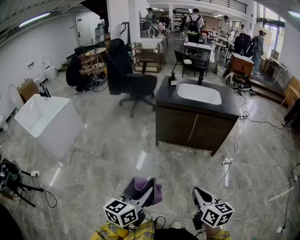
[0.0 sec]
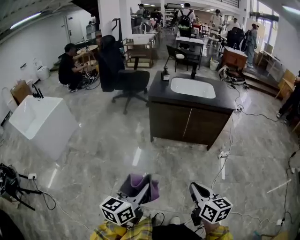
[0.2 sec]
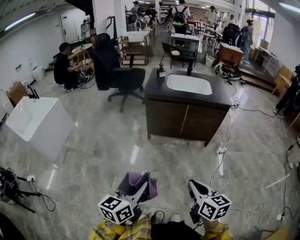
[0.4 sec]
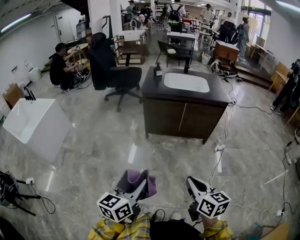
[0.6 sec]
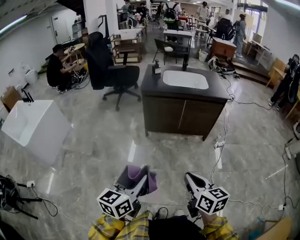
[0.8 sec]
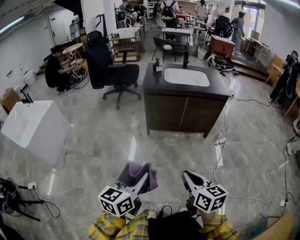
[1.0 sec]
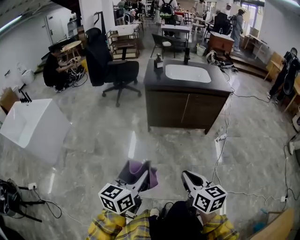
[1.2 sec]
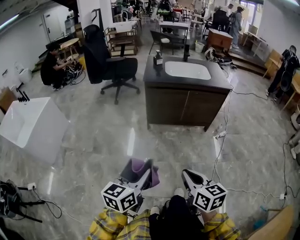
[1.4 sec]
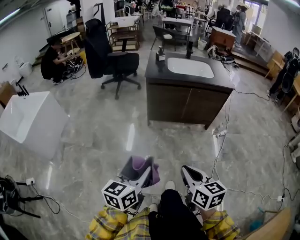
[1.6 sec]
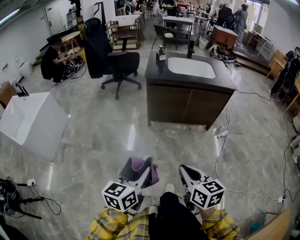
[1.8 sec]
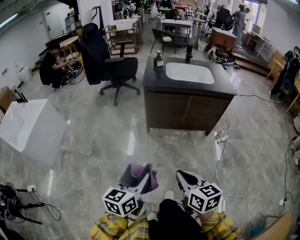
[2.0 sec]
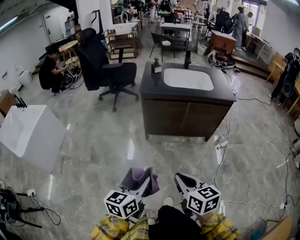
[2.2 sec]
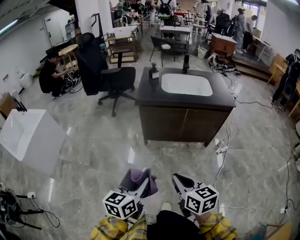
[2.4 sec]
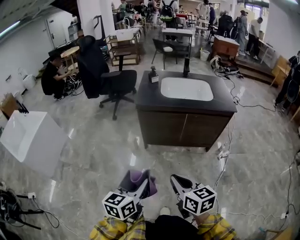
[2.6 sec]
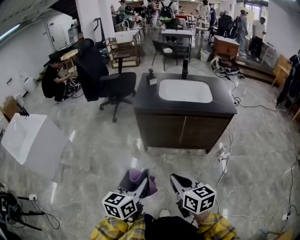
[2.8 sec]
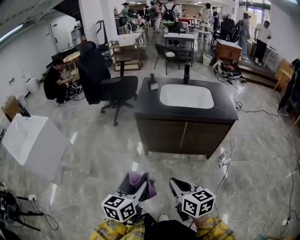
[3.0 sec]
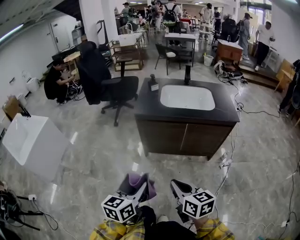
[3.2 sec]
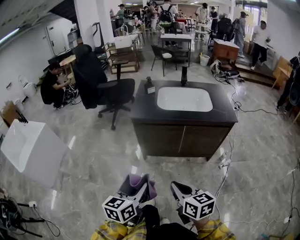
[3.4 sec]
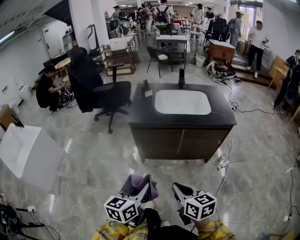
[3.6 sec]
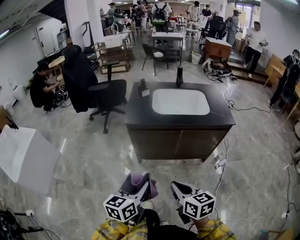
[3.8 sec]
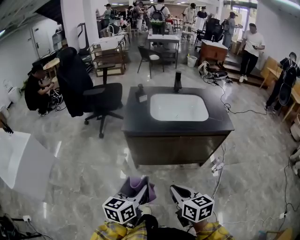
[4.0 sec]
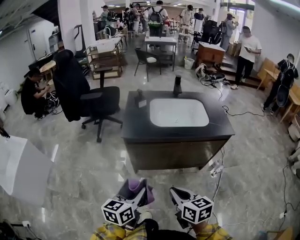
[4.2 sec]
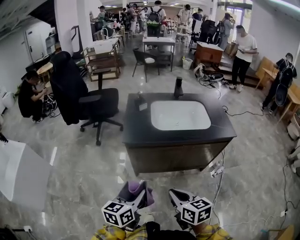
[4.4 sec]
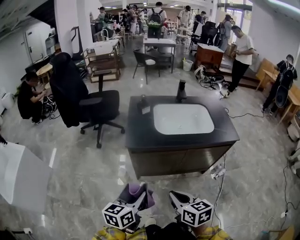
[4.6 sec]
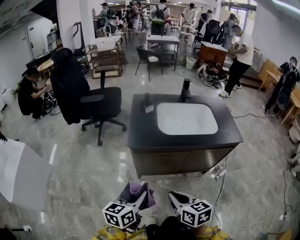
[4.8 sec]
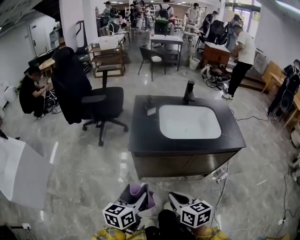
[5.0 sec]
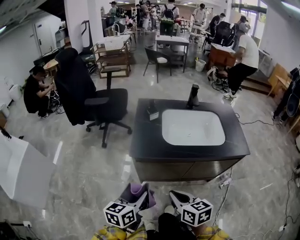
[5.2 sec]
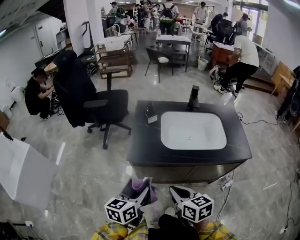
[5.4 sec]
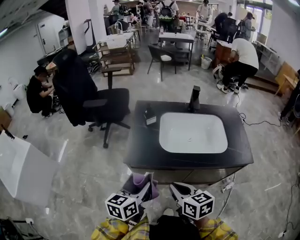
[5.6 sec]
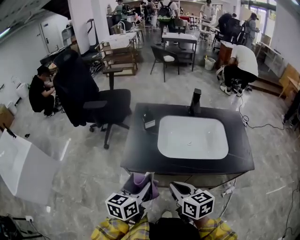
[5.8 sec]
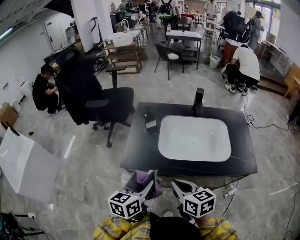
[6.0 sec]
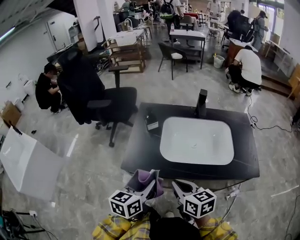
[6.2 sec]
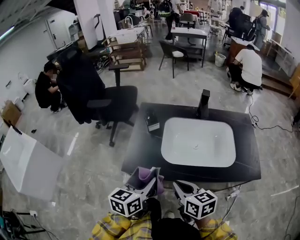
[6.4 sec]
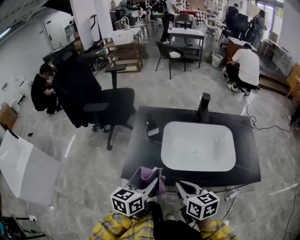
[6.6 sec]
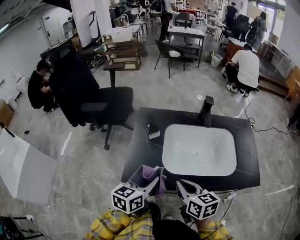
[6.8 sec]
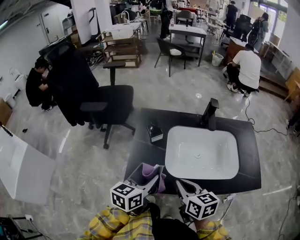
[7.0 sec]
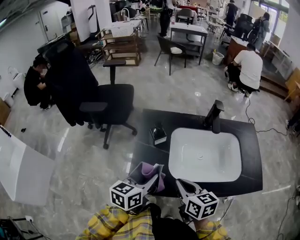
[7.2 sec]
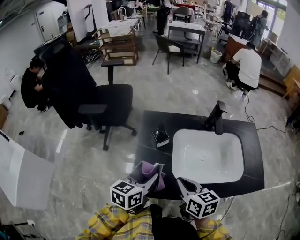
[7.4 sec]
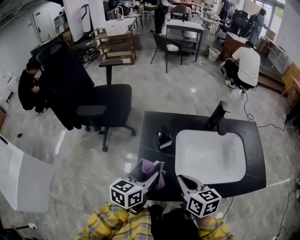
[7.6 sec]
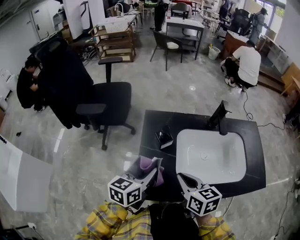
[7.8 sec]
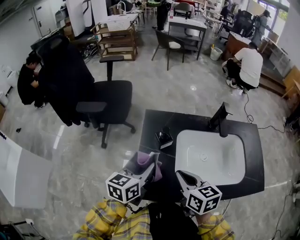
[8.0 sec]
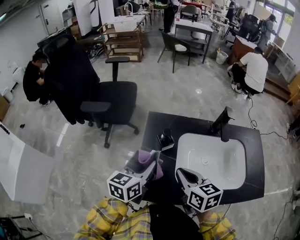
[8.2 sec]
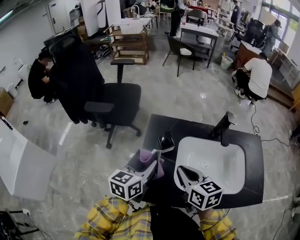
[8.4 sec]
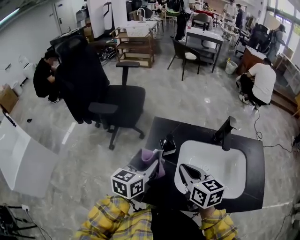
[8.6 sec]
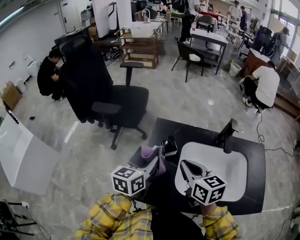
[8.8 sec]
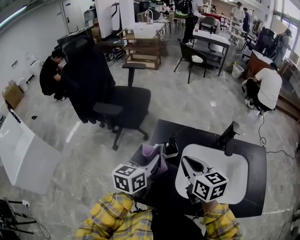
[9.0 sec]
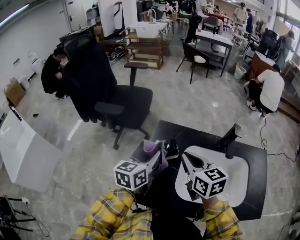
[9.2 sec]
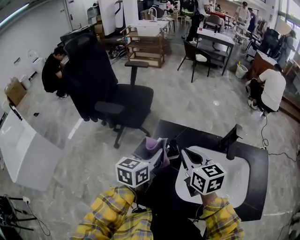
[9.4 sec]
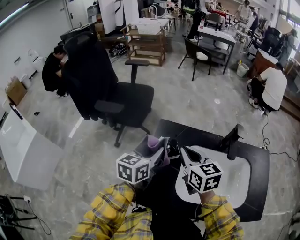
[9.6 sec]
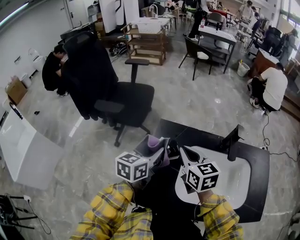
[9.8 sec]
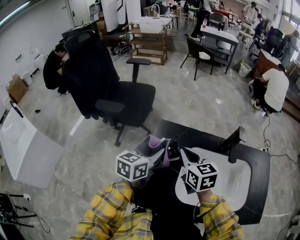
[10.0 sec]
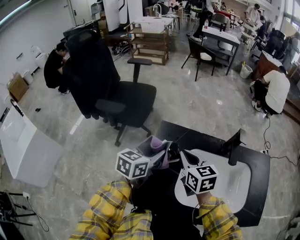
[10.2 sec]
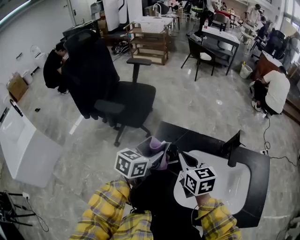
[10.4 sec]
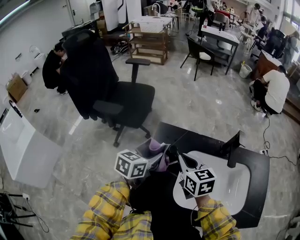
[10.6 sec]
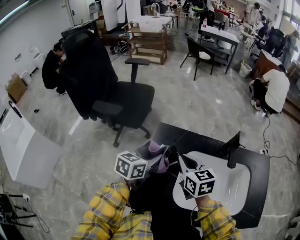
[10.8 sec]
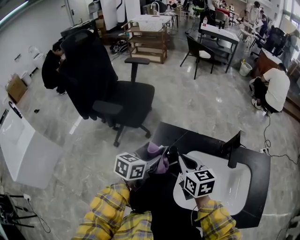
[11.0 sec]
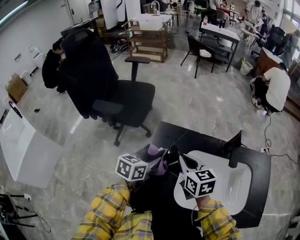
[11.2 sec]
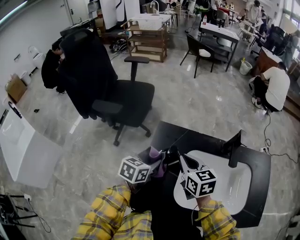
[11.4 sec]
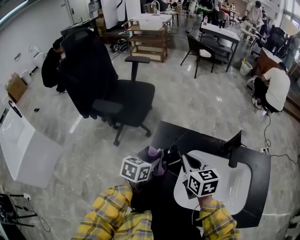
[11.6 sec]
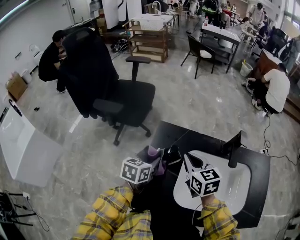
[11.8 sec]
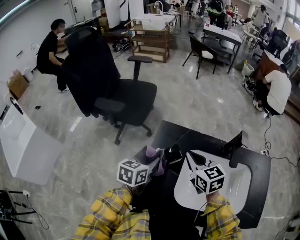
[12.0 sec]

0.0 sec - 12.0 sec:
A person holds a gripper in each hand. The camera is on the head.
0.0 sec - 1.6 sec: The right gripper is displaced to the left by about 15 cm. The left gripper heads to the left and forward, covering approximately 10 cm.
1.6 sec - 3.0 sec: The left gripper is displaced forward and to the right by roughly 25 cm. Meanwhile the right gripper travels forward by approximately 25 cm.
3.0 sec - 4.4 sec: Both grippers travel together forward, some 20 cm.
4.4 sec - 6.0 sec: The grippers both shift forward by about 25 cm.
6.0 sec - 7.6 sec: The grippers both shift forward and to the left by some 25 cm.
7.6 sec - 9.0 sec: The left gripper goes about 10 cm forward; the right gripper travels forward and upward by some 15 cm.
9.0 sec - 10.4 sec: The right gripper goes about 10 cm forward and downward. Meanwhile the left gripper is displaced forward by about 5 cm.
10.4 sec - 12.0 sec: The left gripper moves approximately 5 cm.

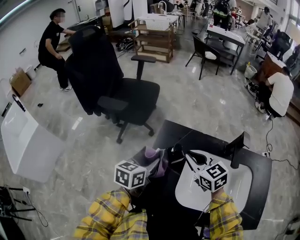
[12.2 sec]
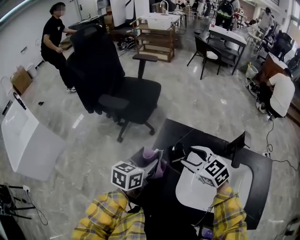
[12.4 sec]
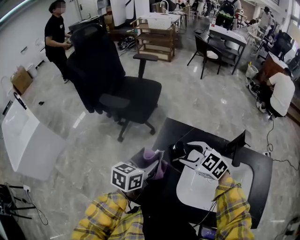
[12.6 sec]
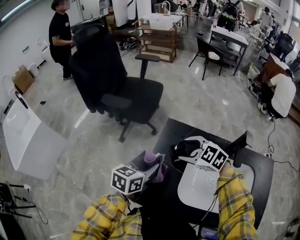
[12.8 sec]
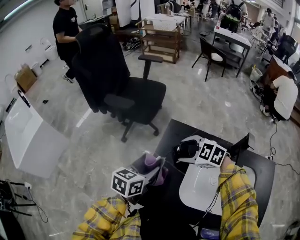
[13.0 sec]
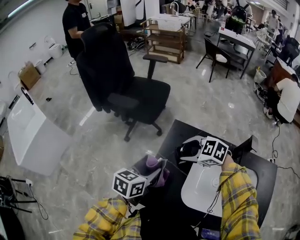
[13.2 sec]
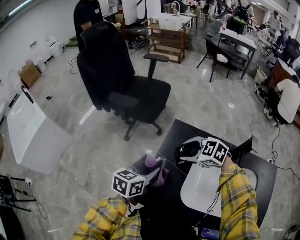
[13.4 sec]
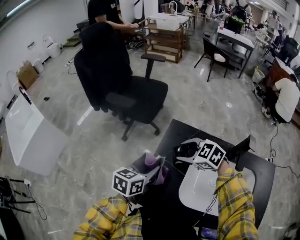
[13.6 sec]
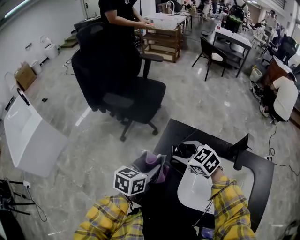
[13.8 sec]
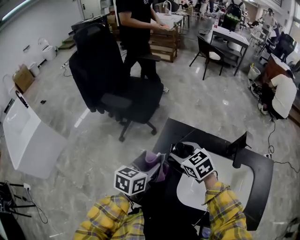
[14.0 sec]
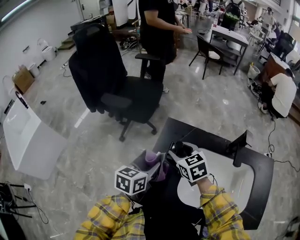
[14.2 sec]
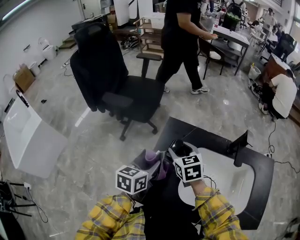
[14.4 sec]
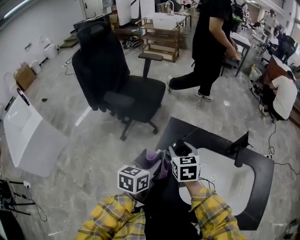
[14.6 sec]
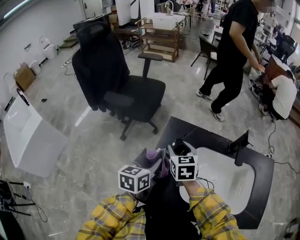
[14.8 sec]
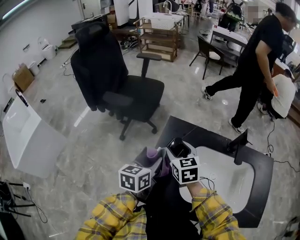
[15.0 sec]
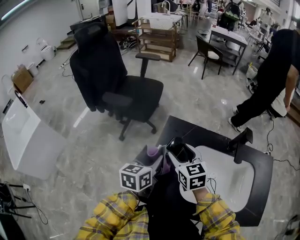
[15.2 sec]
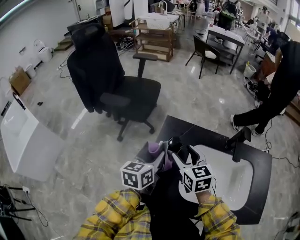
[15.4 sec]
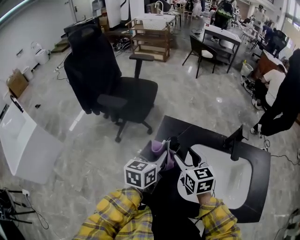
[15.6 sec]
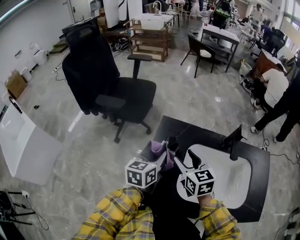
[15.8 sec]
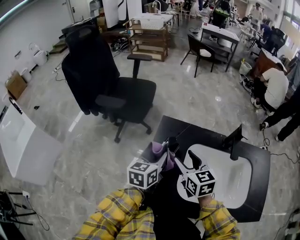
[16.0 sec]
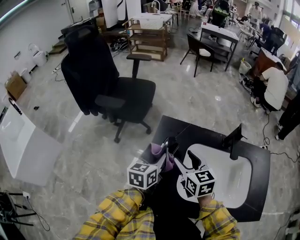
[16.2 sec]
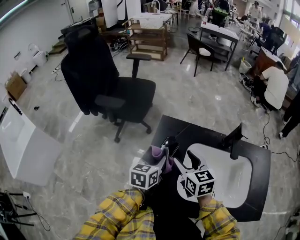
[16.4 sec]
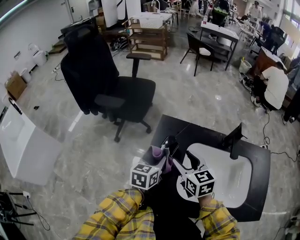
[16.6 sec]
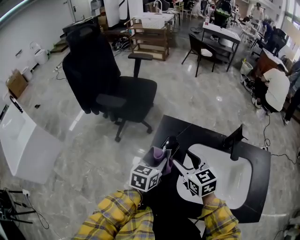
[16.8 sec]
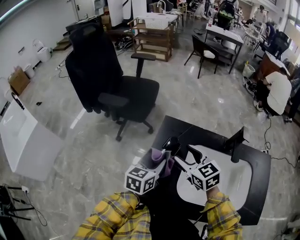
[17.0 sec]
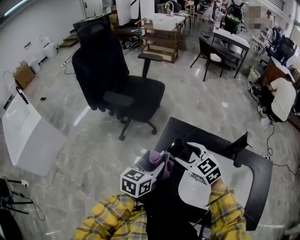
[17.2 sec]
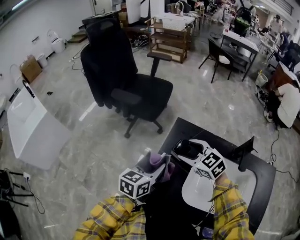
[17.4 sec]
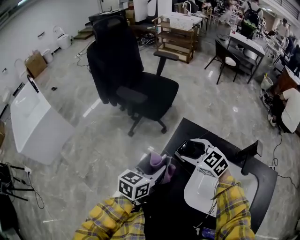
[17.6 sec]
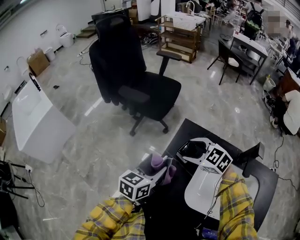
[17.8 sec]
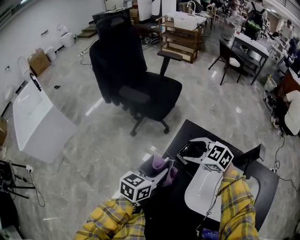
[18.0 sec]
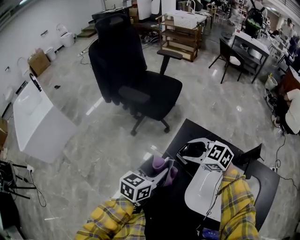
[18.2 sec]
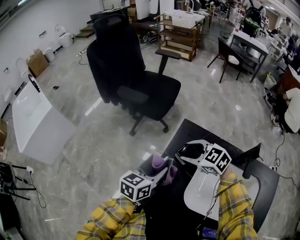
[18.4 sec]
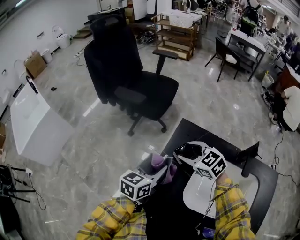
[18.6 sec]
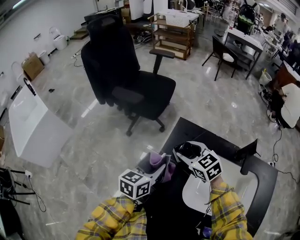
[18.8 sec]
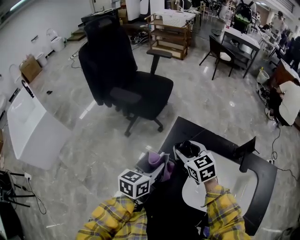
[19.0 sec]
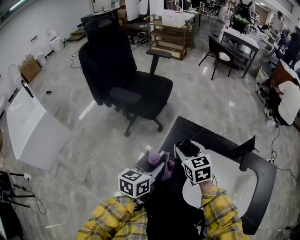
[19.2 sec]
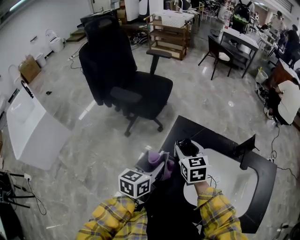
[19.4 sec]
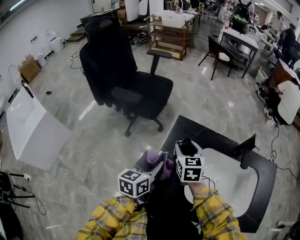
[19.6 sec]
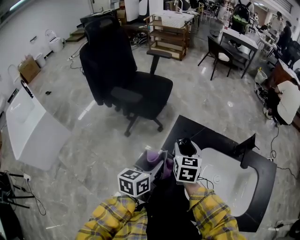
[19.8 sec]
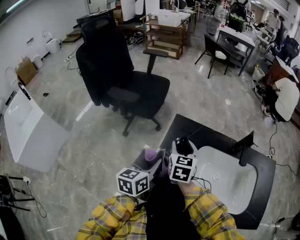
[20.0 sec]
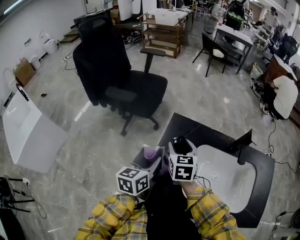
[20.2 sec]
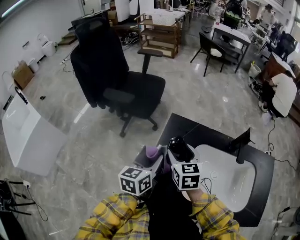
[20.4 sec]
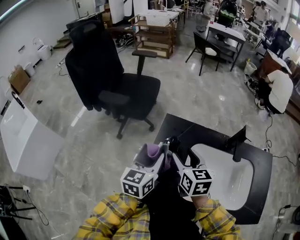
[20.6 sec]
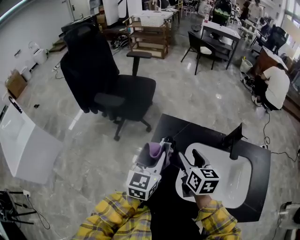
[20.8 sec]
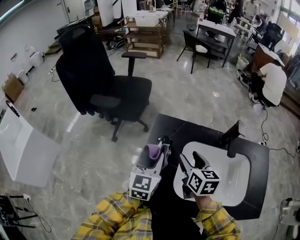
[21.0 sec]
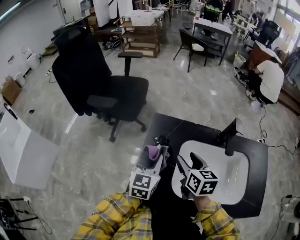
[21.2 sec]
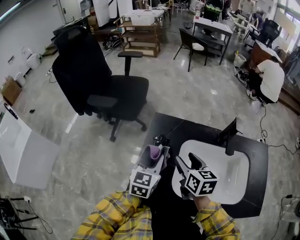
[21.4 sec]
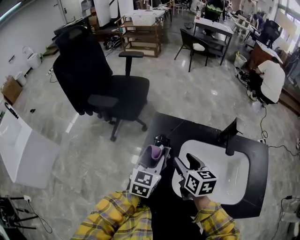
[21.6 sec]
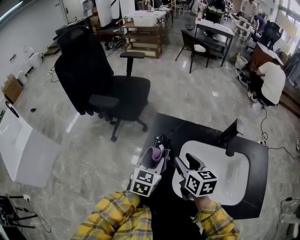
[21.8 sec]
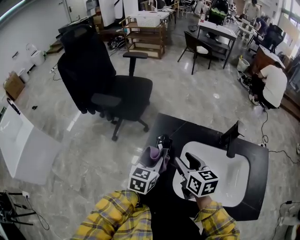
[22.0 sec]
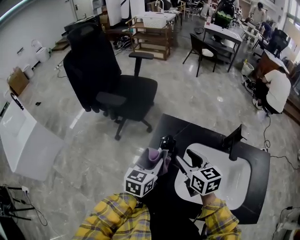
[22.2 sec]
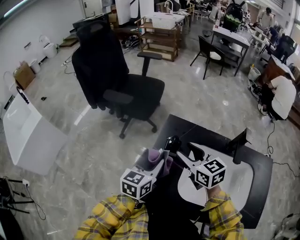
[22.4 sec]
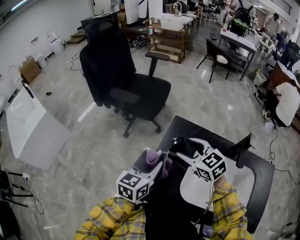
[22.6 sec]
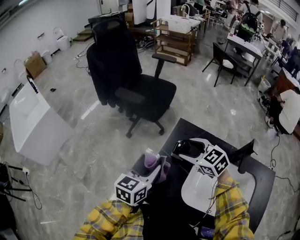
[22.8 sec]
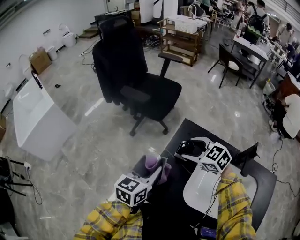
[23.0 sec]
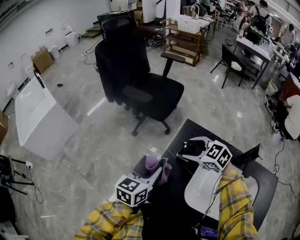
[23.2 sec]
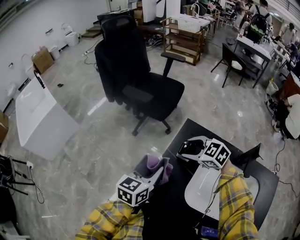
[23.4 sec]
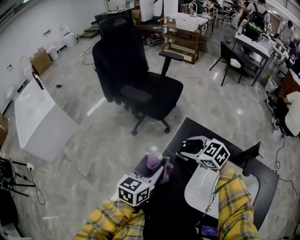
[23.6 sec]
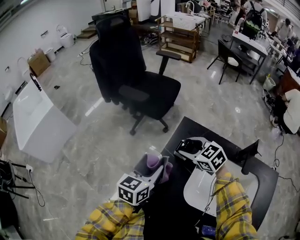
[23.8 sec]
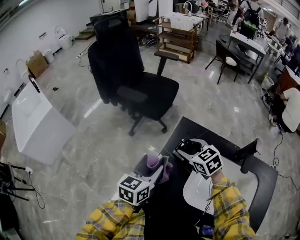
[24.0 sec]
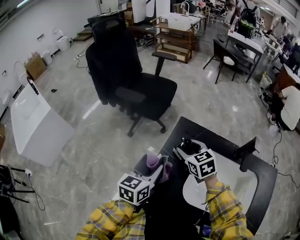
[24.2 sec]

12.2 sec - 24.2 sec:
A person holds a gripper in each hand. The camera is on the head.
12.2 sec - 13.8 sec: The right gripper heads to the left, covering approximately 5 cm, rotates about 30 degrees, and opens.
13.8 sec - 15.2 sec: The right gripper changes its angle by roughly 40 degrees.
15.2 sec - 16.6 sec: The left gripper changes place by some 5 cm, while the right gripper changes place by about 5 cm.
16.6 sec - 18.2 sec: The right gripper moves about 10 cm, and rotates some 60 degrees. Meanwhile the left gripper ends up about 10 cm from where it was.
18.2 sec - 19.8 sec: The right gripper turns by roughly 70 degrees.
19.8 sec - 21.2 sec: The left gripper heads to the right, covering about 10 cm, and rotates about 30 degrees, while the right gripper shifts approximately 15 cm to the right and backward, and turns by approximately 20 degrees.
21.2 sec - 22.6 sec: The left gripper moves to the left, roughly 5 cm, while the right gripper shifts some 10 cm to the left, and turns by approximately 50 degrees.
22.6 sec - 24.2 sec: The right gripper moves about 5 cm.
